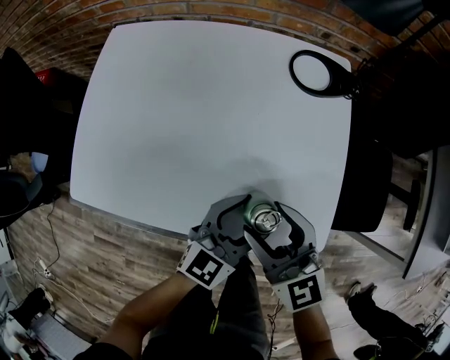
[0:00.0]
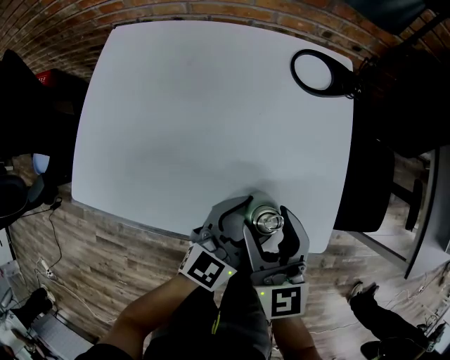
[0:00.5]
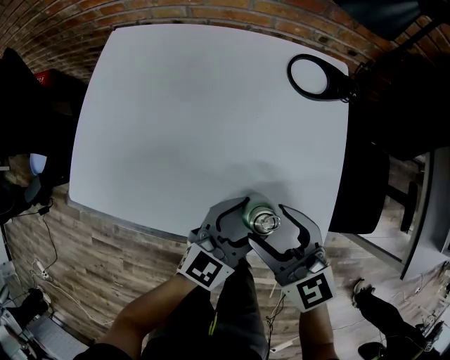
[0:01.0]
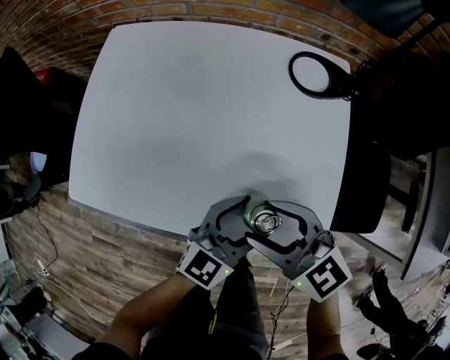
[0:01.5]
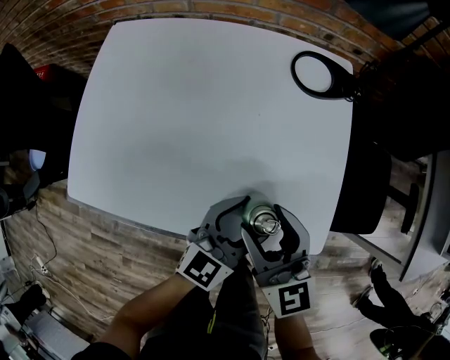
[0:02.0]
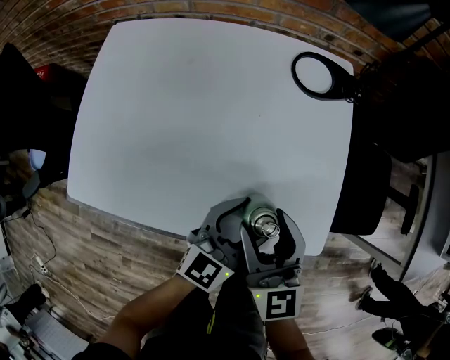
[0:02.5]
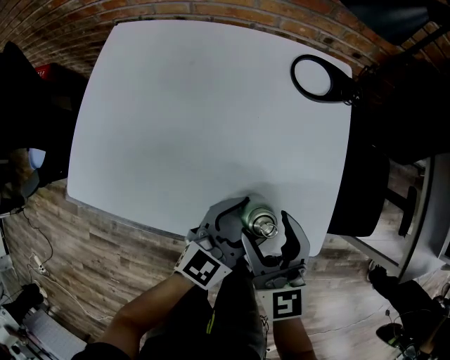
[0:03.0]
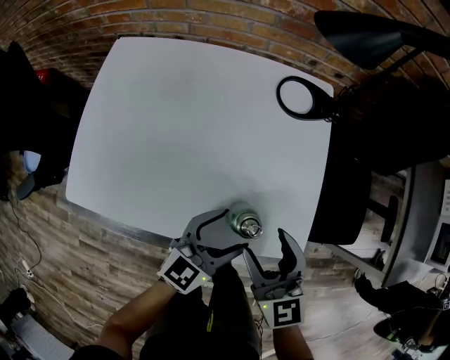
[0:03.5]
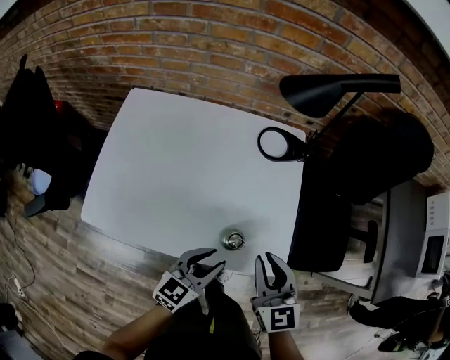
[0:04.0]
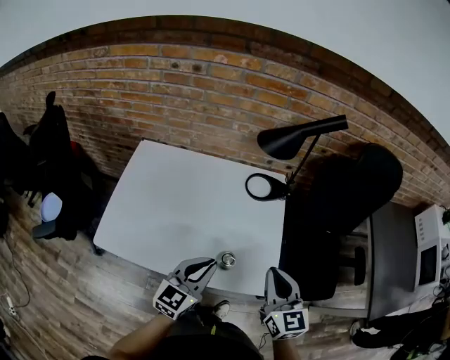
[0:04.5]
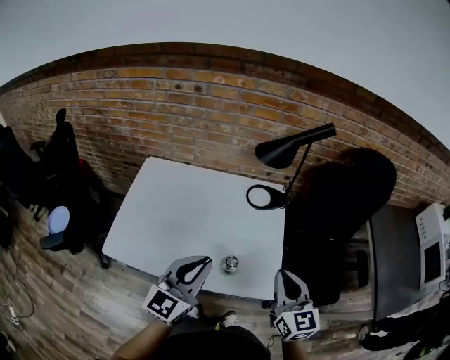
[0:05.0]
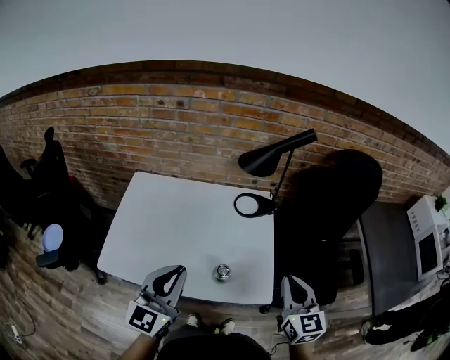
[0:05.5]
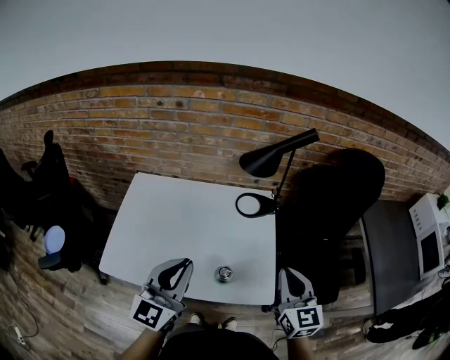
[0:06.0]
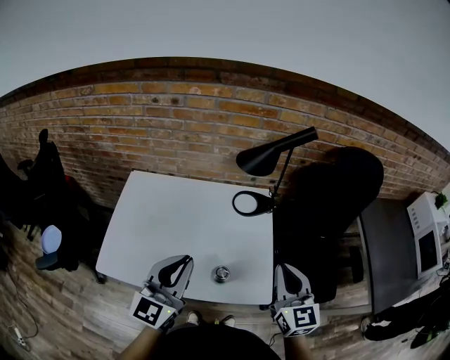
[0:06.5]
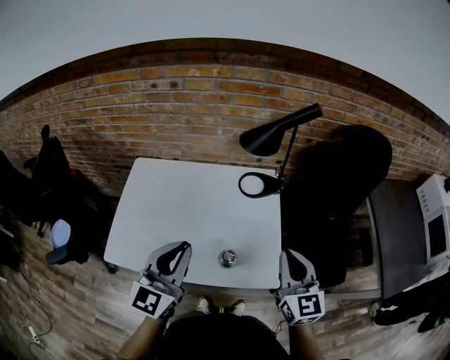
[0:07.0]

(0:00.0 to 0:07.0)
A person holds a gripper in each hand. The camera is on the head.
0:02.0 - 0:03.5: The right gripper shifts by some 5 cm.
0:03.5 - 0:05.0: The right gripper shifts about 20 cm upward and to the right, and closes its fingers. The left gripper goes some 25 cm upward, rotates approximately 20 degrees, and closes up.
0:05.0 - 0:07.0: The left gripper moves some 5 cm.

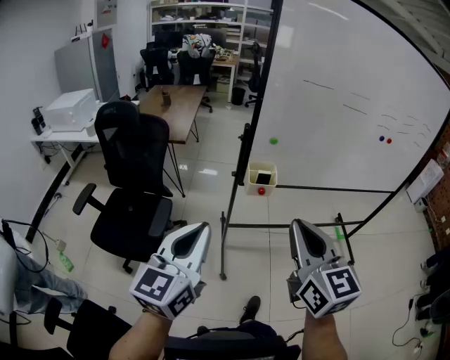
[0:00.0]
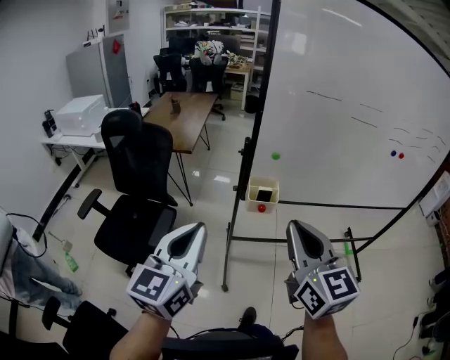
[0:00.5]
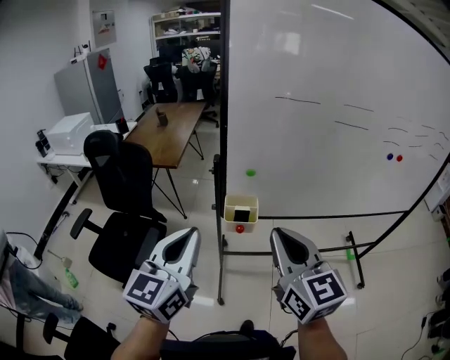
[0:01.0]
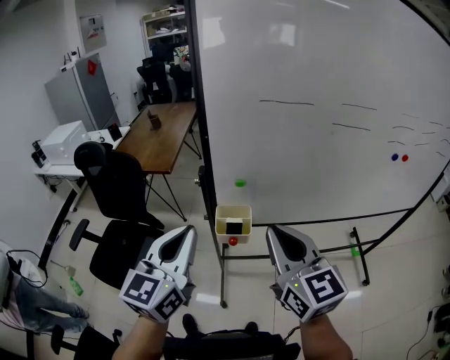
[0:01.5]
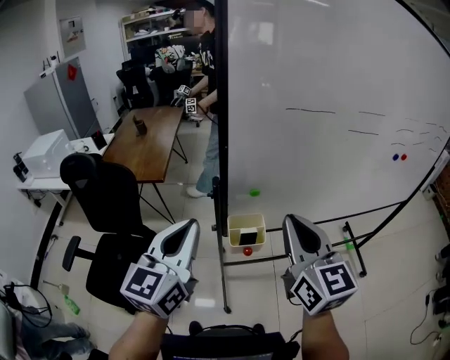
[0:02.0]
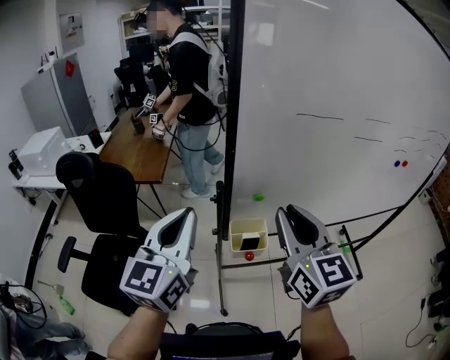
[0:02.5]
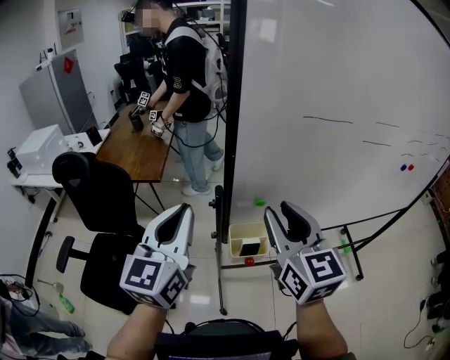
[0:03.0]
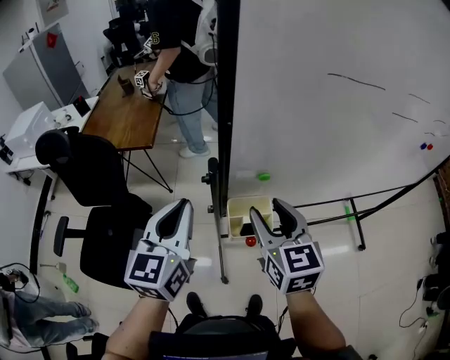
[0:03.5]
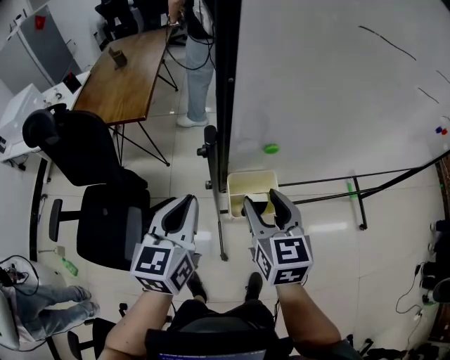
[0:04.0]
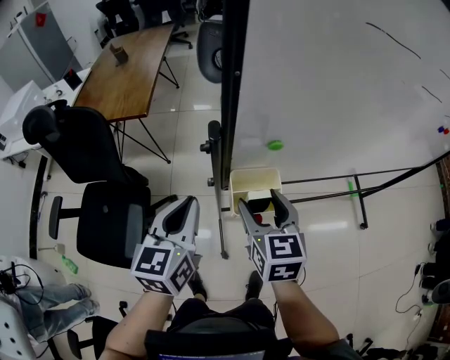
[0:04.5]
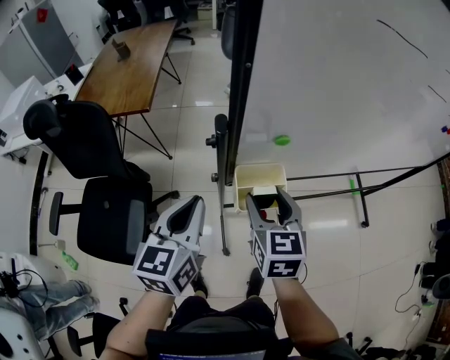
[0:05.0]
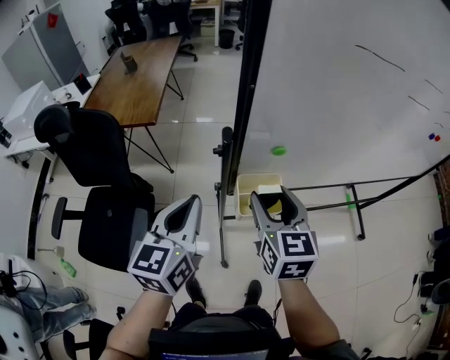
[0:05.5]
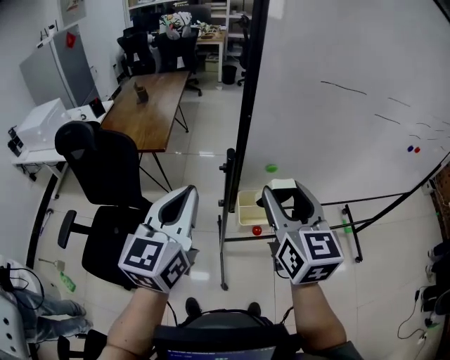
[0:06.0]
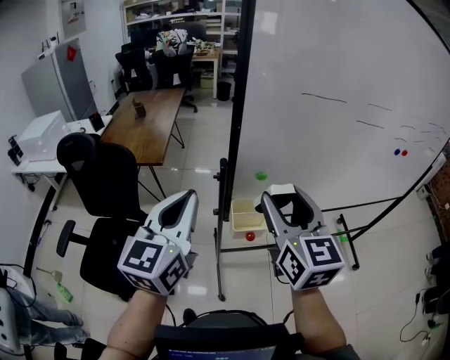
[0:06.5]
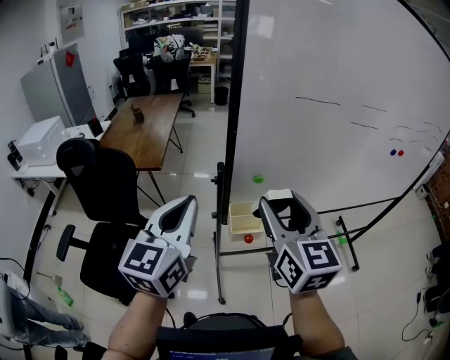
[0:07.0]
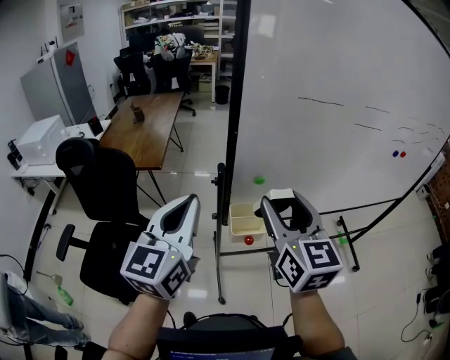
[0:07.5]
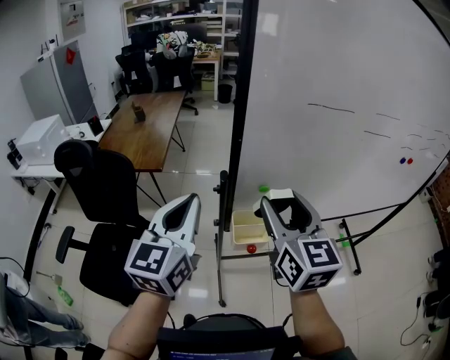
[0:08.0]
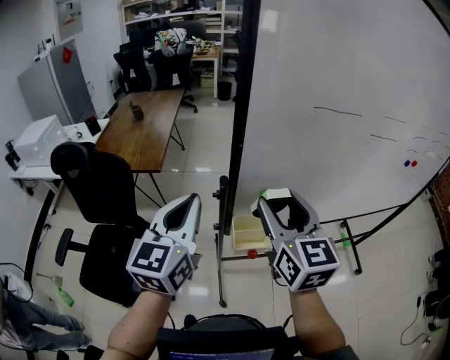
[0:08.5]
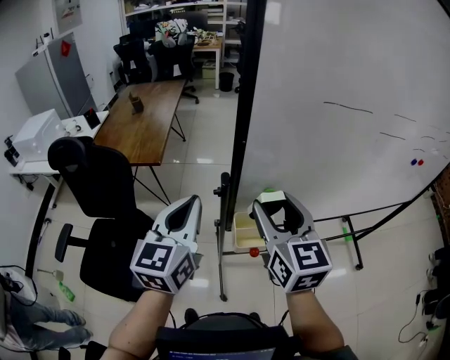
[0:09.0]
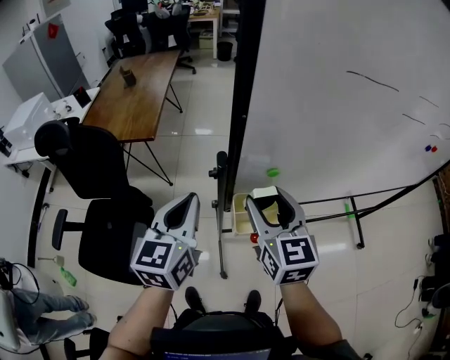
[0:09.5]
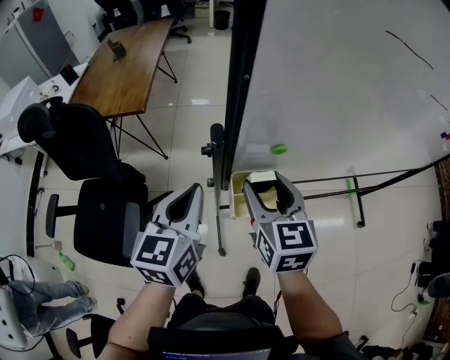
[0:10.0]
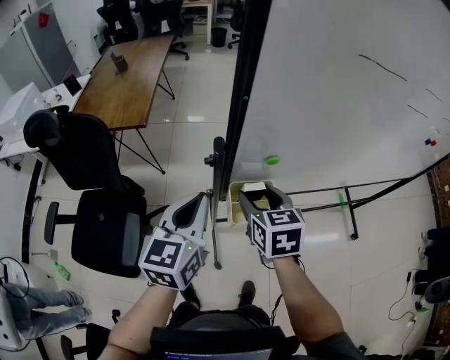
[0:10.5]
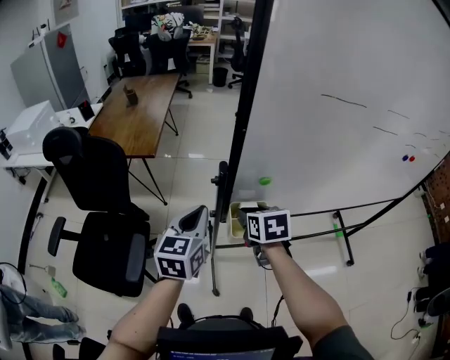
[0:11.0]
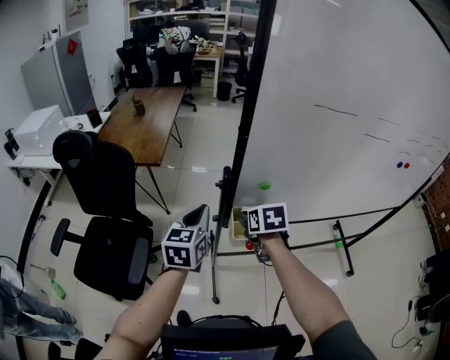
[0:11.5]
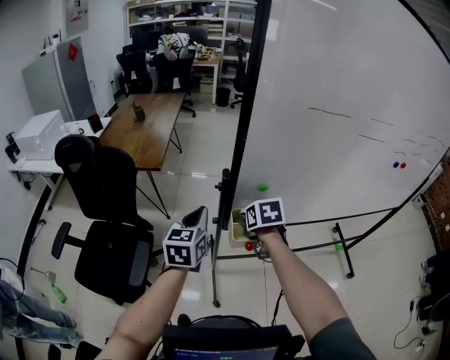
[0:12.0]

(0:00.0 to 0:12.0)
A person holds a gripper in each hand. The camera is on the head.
0:00.0 - 0:02.0: The grippers both shift forward by approximately 30 cm.
0:02.0 - 0:04.0: The two grippers go approximately 25 cm downward and forward. The right gripper rotates roughly 20 degrees, and opens its fingers.
0:04.0 - 0:06.0: The right gripper shifts approximately 20 cm upward, while the left gripper shifts roughly 20 cm upward and backward.
0:08.0 - 0:10.0: Both grippers travel together downward and forward, roughly 20 cm.
0:10.0 - 0:12.0: The left gripper shifts by roughly 5 cm, while the right gripper tilts its fingers some 30 degrees downward.

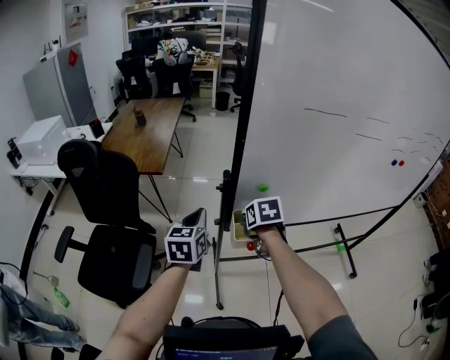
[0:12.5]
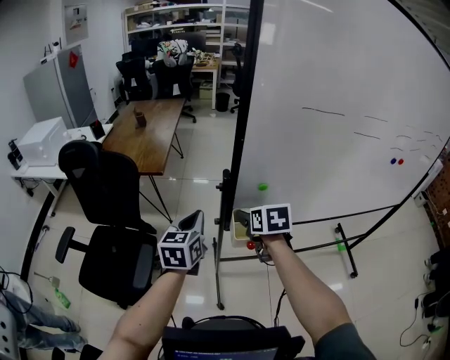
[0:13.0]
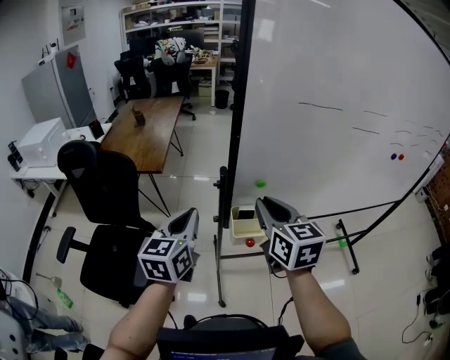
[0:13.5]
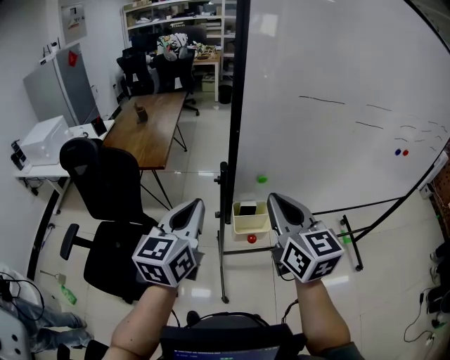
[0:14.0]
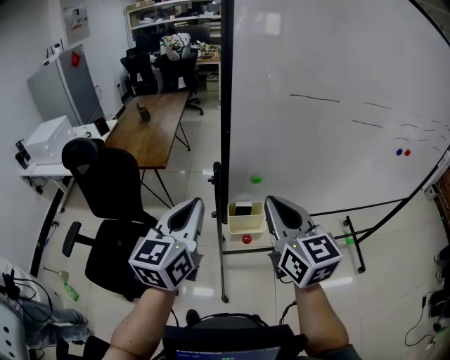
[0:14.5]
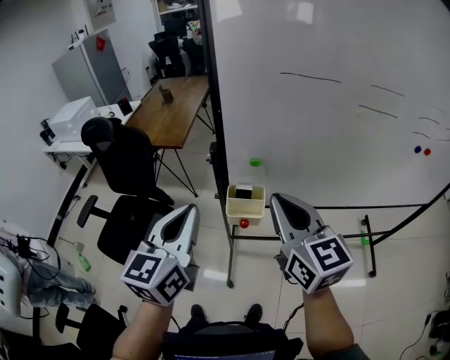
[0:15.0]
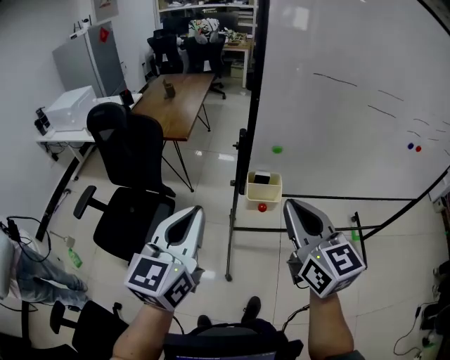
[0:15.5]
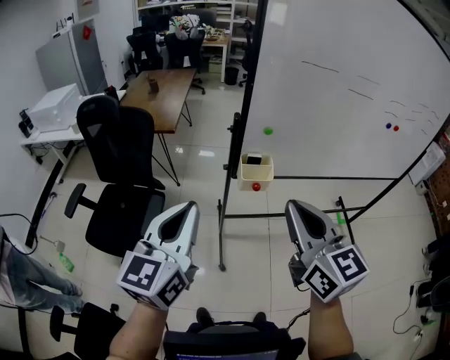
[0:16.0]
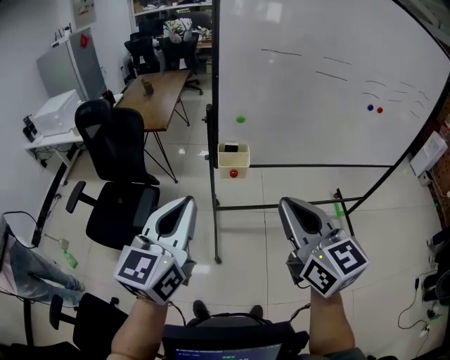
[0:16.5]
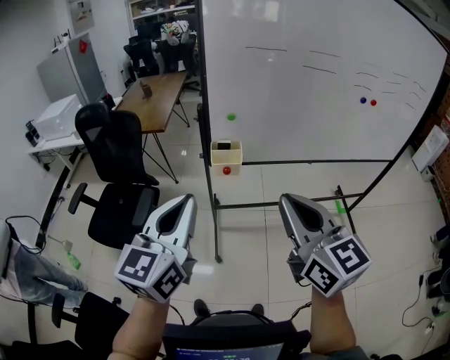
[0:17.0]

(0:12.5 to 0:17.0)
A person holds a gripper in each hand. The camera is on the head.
0:12.5 - 0:14.5: The right gripper heads upward and backward, covering roughly 25 cm, tips its fingers upward by approximately 50 degrees, and closes; the left gripper moves upward and backward, roughly 15 cm.
0:14.5 - 0:17.0: Both grippers move backward, some 30 cm.

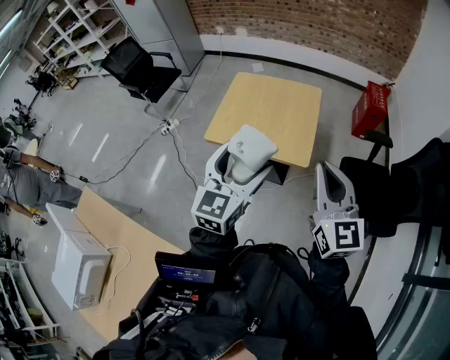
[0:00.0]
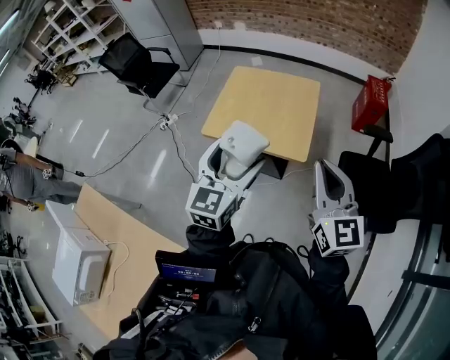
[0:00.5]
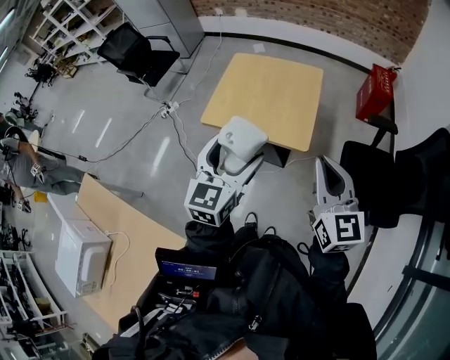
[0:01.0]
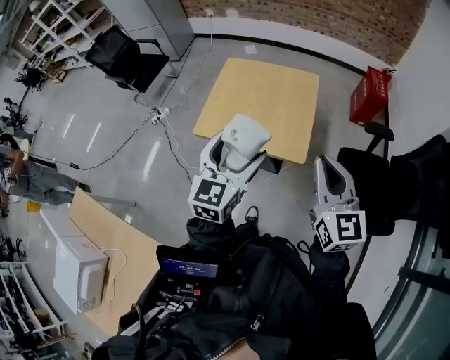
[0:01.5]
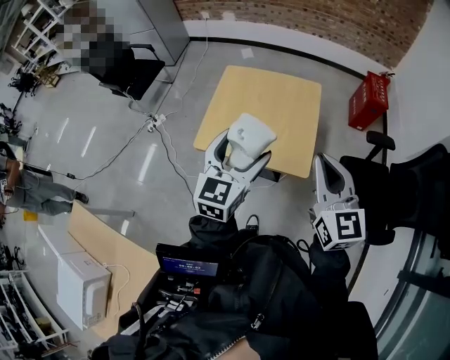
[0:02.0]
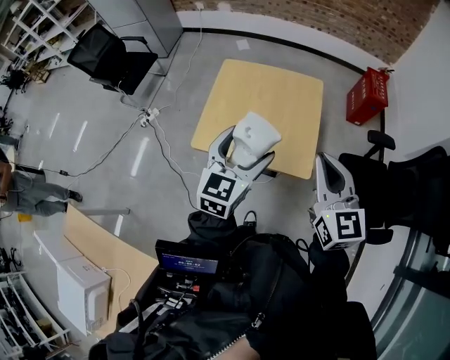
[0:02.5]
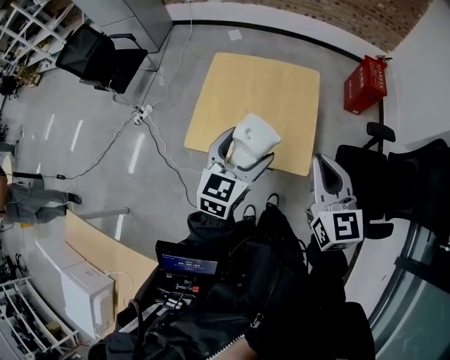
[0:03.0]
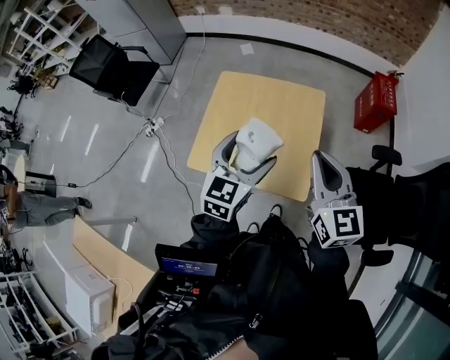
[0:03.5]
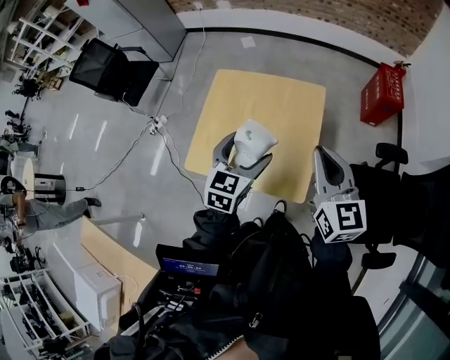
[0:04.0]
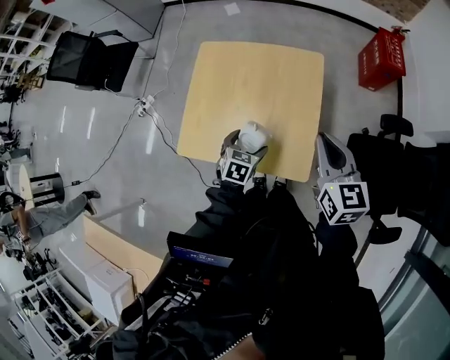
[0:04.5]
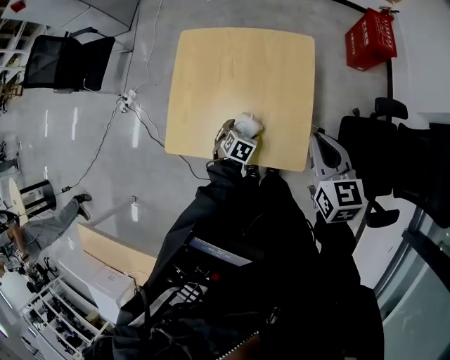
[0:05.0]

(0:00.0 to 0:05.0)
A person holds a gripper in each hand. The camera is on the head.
0:00.0 - 0:02.5: Both grippers move forward, about 20 cm.
0:02.5 - 0:05.0: The right gripper travels forward, downward and to the right by approximately 25 cm, and rotates roughly 20 degrees. Meanwhile the left gripper is displaced downward by about 40 cm, and points its fingers roughly 50 degrees further downward.
